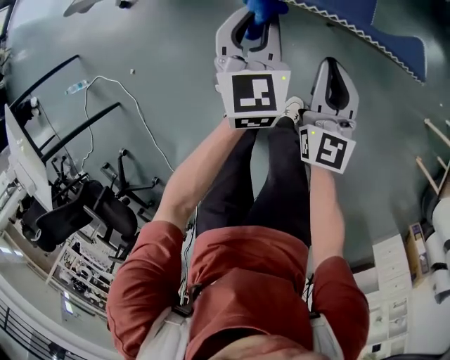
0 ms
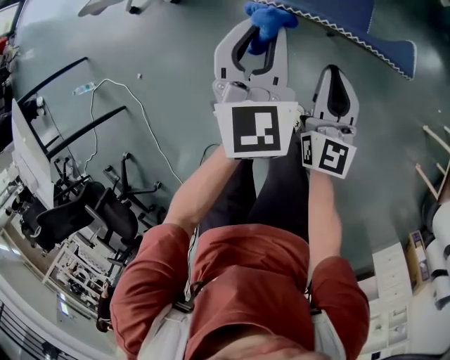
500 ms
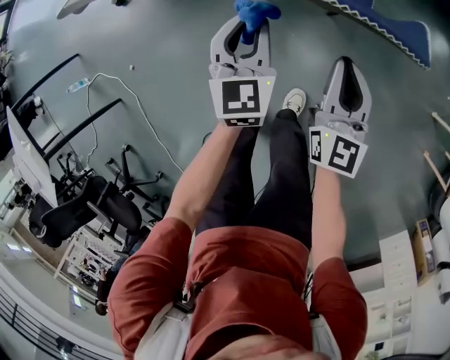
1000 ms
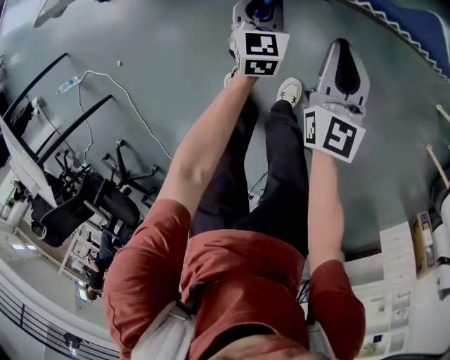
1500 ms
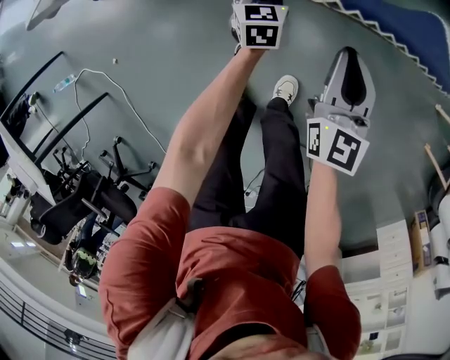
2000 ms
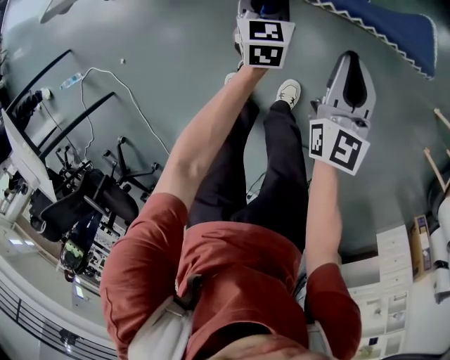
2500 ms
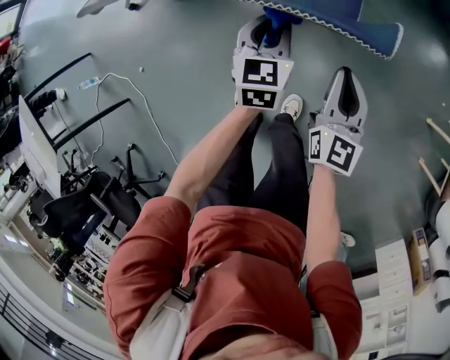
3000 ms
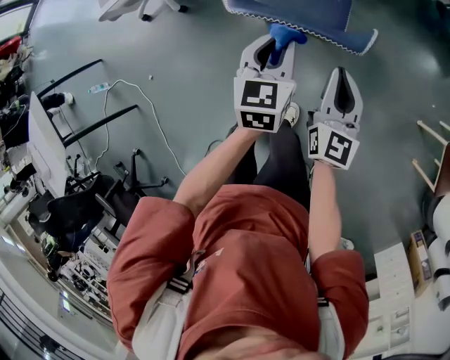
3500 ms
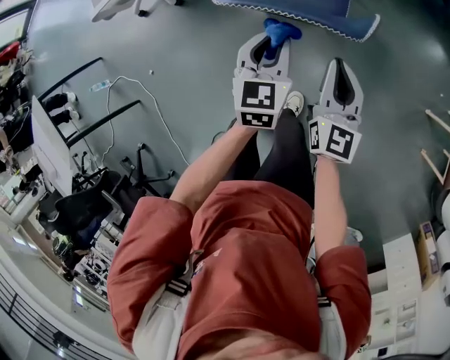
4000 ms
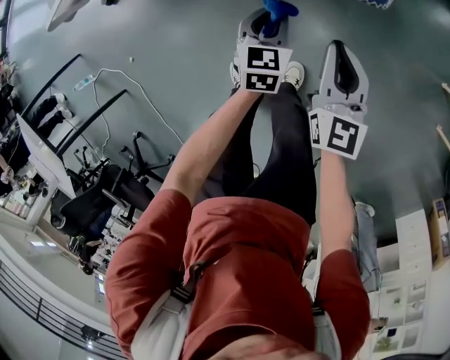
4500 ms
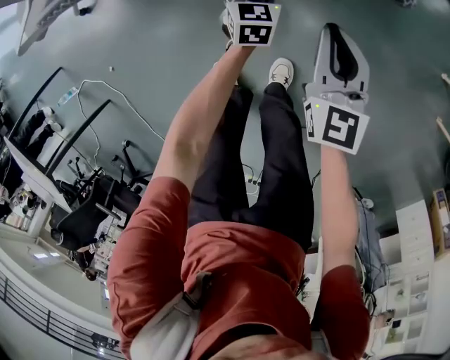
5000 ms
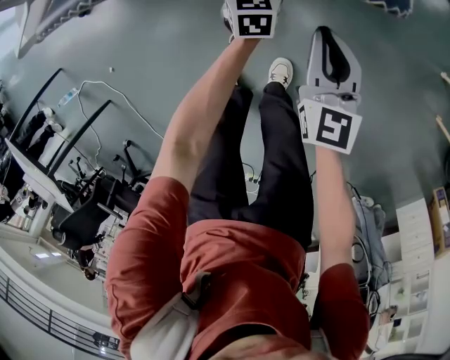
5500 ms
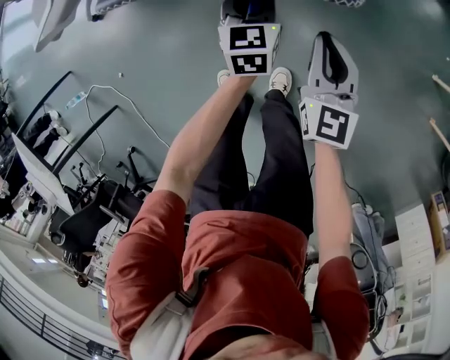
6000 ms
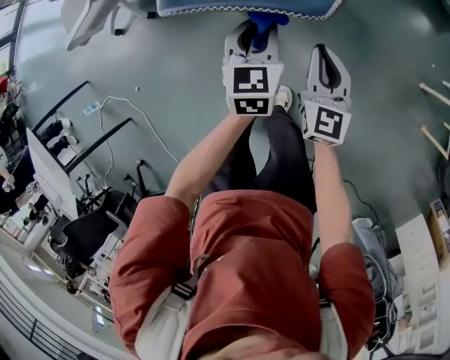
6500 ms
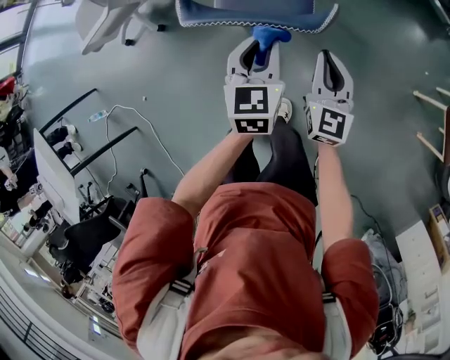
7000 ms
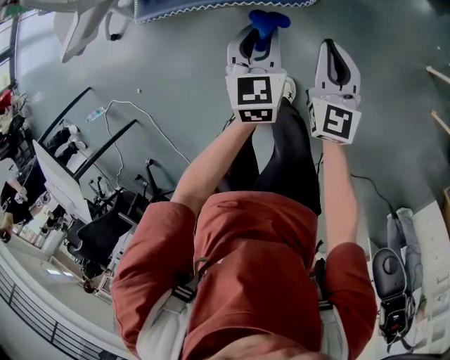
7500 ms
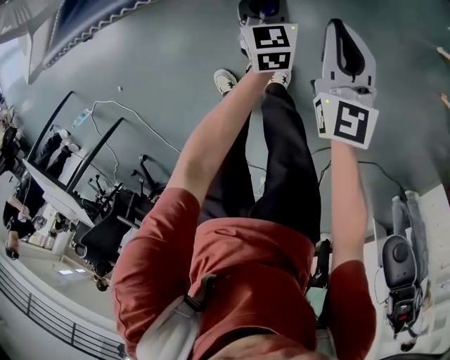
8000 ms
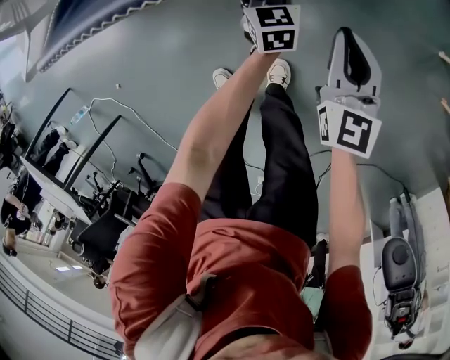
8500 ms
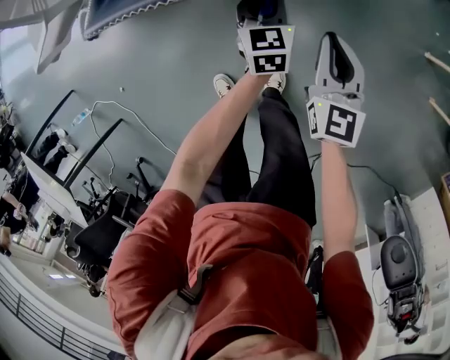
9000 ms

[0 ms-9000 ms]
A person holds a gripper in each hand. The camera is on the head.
0 ms to 2000 ms: The right gripper is displaced to the right and downward by about 15 cm. The left gripper heads downward, covering approximately 30 cm.
2000 ms to 4500 ms: The left gripper heads backward and to the right, covering some 15 cm, and travels upward and back again, roughly 40 cm each way. Meanwhile the right gripper goes upward and returns, some 20 cm each way.
4500 ms to 7000 ms: The right gripper is displaced upward by roughly 15 cm, while the left gripper heads upward, covering about 25 cm.
7000 ms to 9000 ms: The left gripper is displaced downward by about 25 cm. The right gripper goes some 15 cm downward.

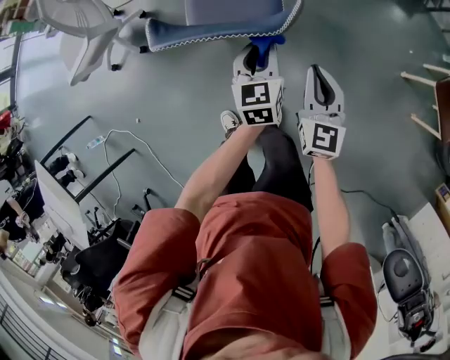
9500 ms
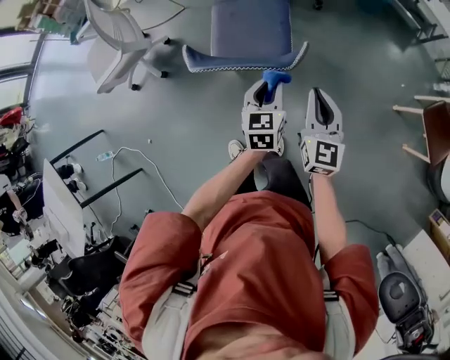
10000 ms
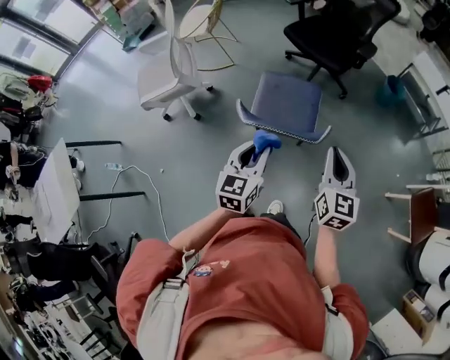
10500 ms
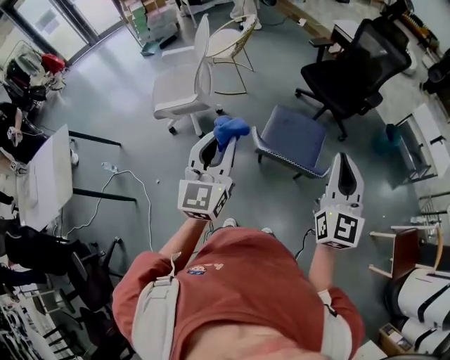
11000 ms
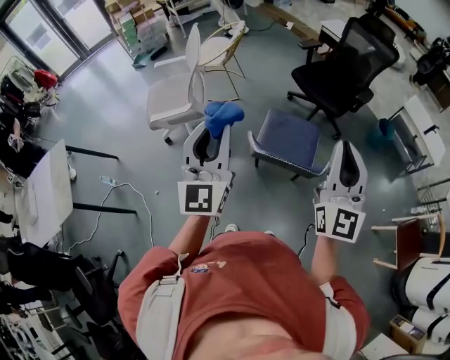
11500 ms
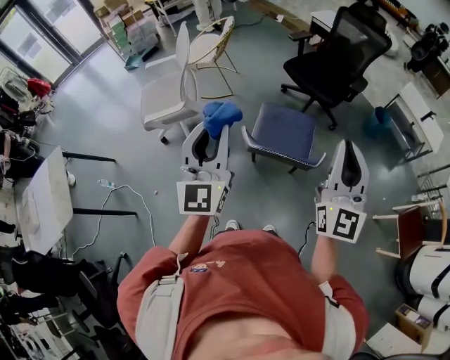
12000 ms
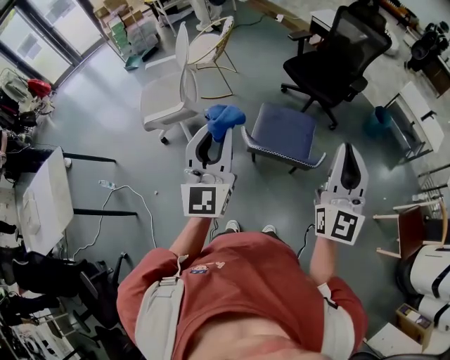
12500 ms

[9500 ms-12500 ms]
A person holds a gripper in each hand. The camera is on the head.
9500 ms to 11000 ms: The left gripper is displaced upward and to the left by some 50 cm, and turns by approximately 30 degrees, while the right gripper shifts some 40 cm upward, and changes its angle by about 30 degrees.
11000 ms to 12500 ms: The left gripper travels upward by some 5 cm; the right gripper changes place by some 5 cm.

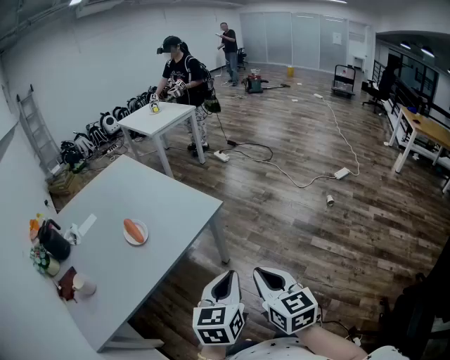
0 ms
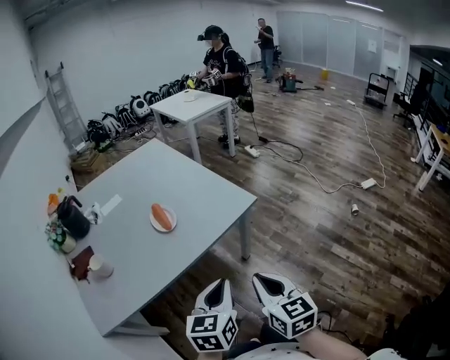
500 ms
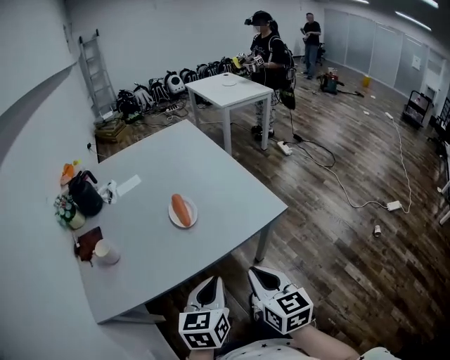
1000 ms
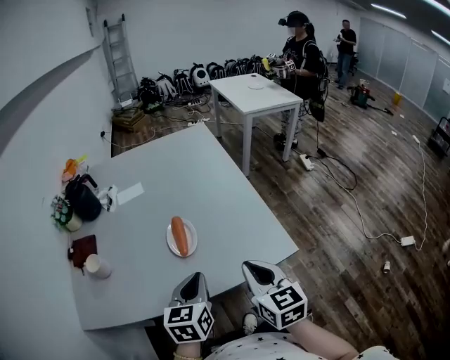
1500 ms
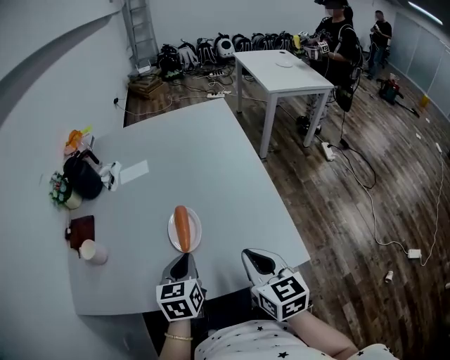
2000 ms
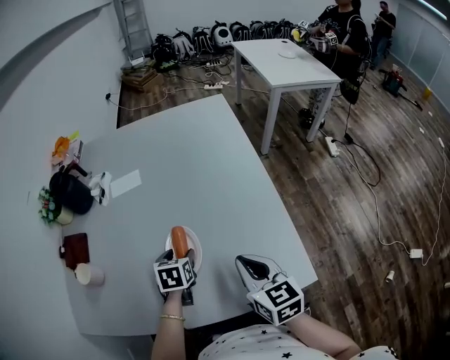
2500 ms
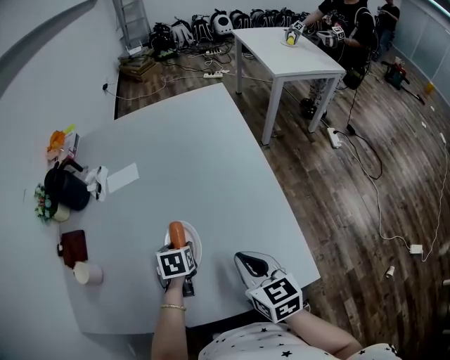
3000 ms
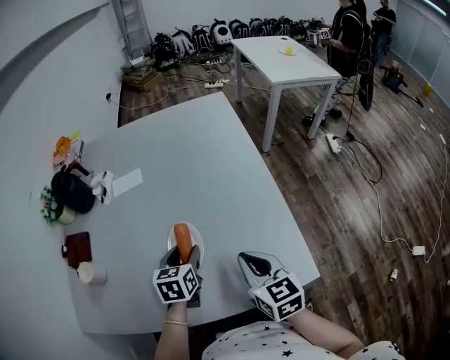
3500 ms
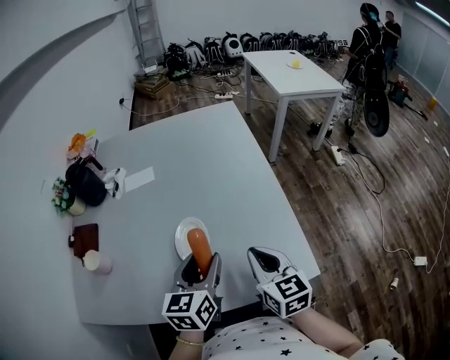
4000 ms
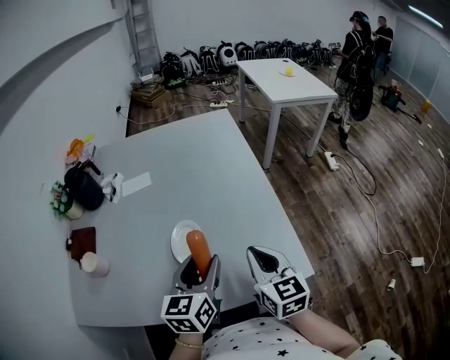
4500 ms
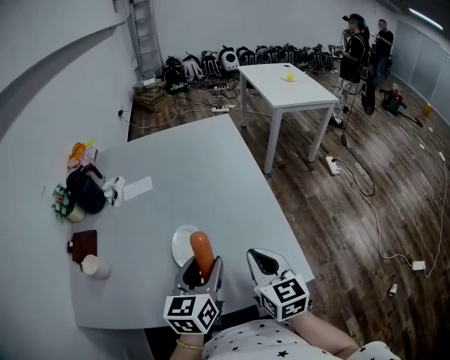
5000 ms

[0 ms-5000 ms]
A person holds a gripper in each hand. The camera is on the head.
0 ms to 2500 ms: Both grippers are carried roughly 50 cm. The left gripper tilts its fingers some 30 degrees downward, and opens its fingers. Meanwhile the right gripper rotates approximately 40 degrees.
2500 ms to 5000 ms: The left gripper goes some 20 cm upward, backward and to the right, and tilts its fingers roughly 40 degrees upward. The right gripper ends up approximately 5 cm from where it was.

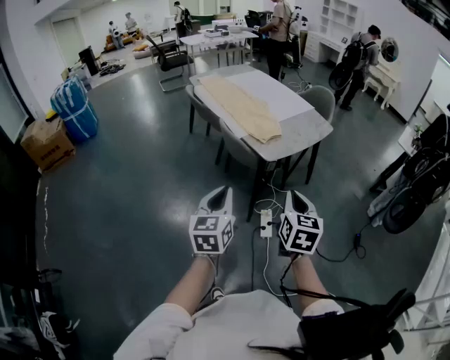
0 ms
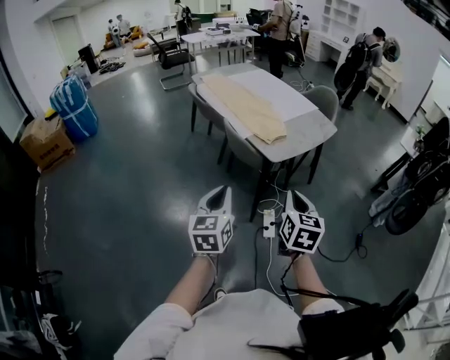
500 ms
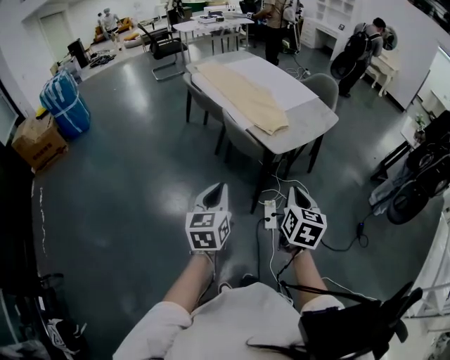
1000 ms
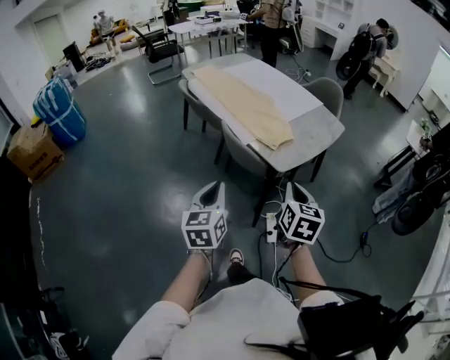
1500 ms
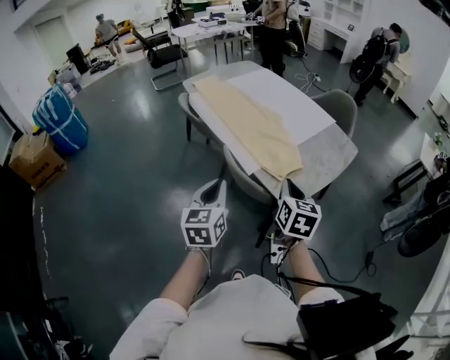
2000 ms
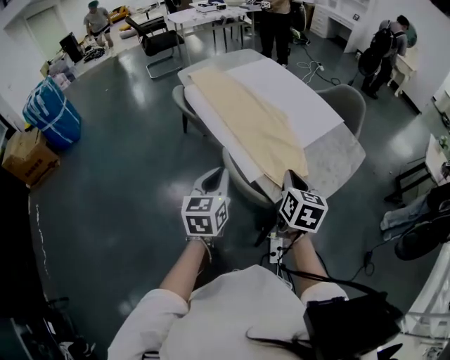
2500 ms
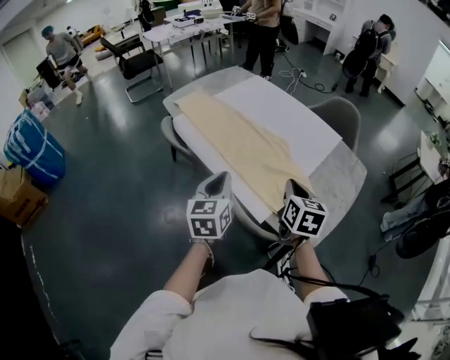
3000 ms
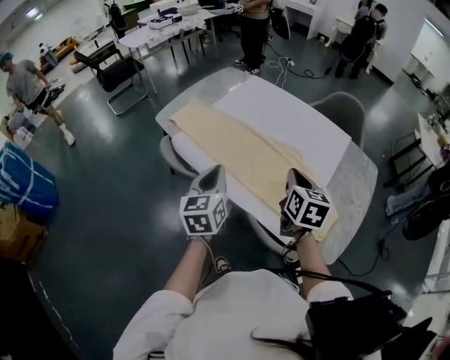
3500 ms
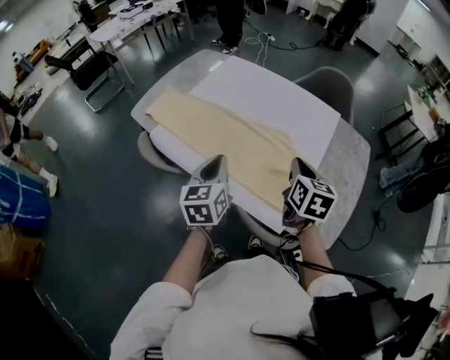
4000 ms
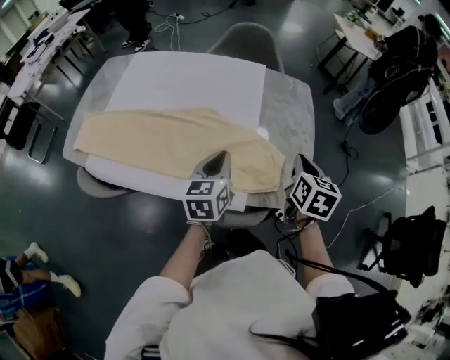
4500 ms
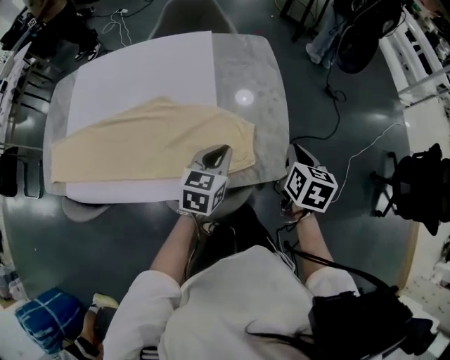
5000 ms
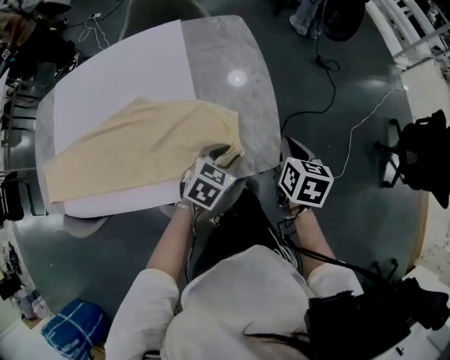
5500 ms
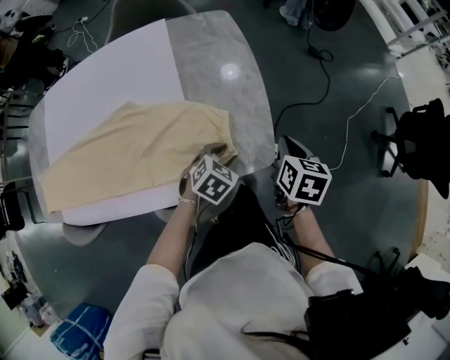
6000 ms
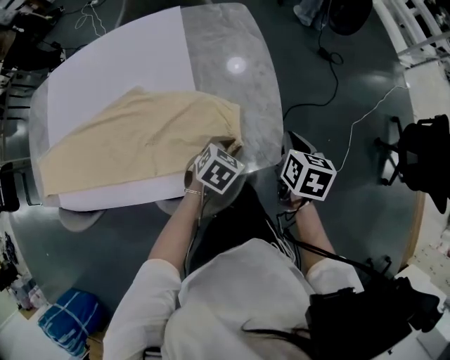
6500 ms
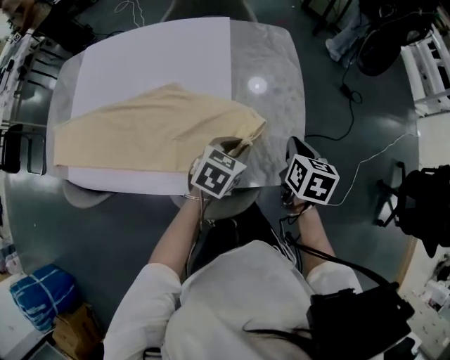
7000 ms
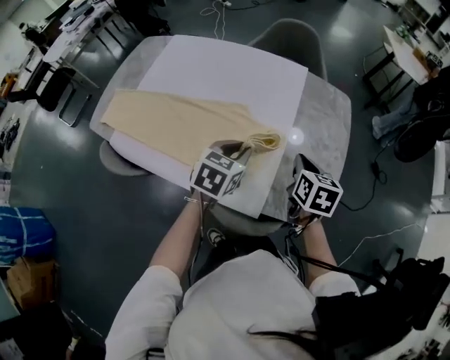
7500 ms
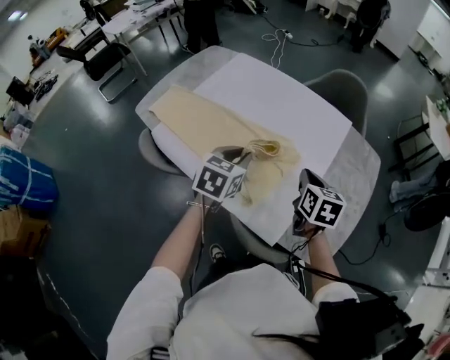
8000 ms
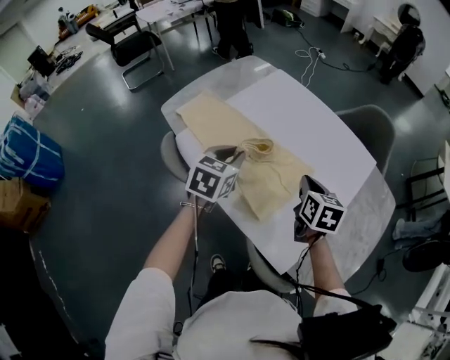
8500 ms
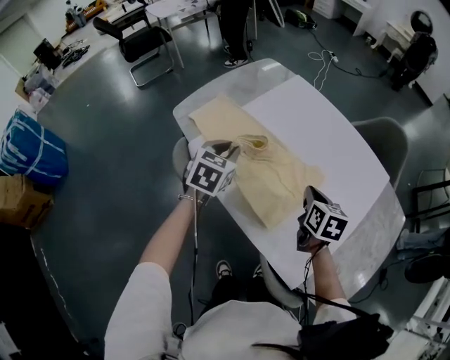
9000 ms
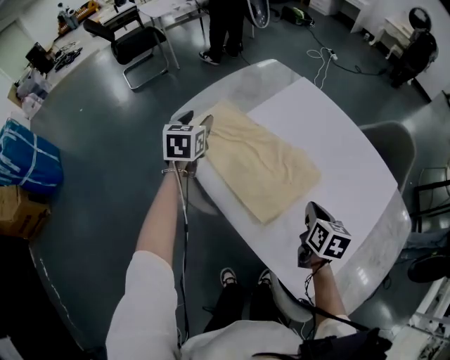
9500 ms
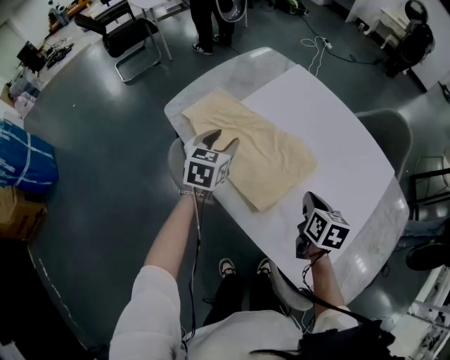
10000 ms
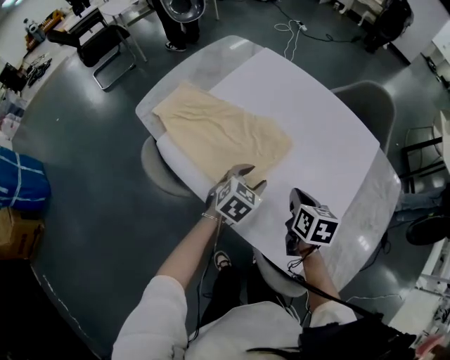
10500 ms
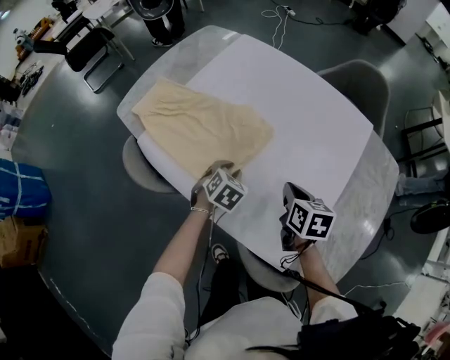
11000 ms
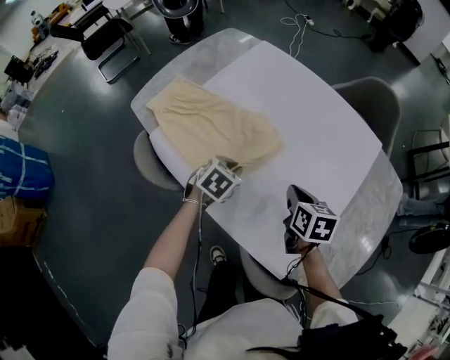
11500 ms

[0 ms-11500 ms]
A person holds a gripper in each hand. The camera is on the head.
0 ms to 2000 ms: Both grippers move forward, some 35 cm.
2000 ms to 4000 ms: The right gripper shifts roughly 40 cm forward and to the left, and swivels about 20 degrees. Meanwhile the left gripper is displaced forward by approximately 50 cm, and changes its angle by some 20 degrees.
4000 ms to 6000 ms: The right gripper shifts by approximately 40 cm, and rotates roughly 50 degrees; the left gripper shifts by approximately 50 cm, tips its fingers downward by approximately 40 degrees, and opens its fingers.
6000 ms to 7500 ms: The left gripper moves approximately 30 cm, turns by approximately 50 degrees, and closes; the right gripper shifts by some 25 cm, and turns by approximately 30 degrees.
7500 ms to 9500 ms: The left gripper ends up roughly 60 cm from where it was, swivels approximately 50 degrees, and opens its fingers. Meanwhile the right gripper shifts by approximately 40 cm, and turns by about 20 degrees.
9500 ms to 11500 ms: The right gripper moves to the right, some 10 cm. Meanwhile the left gripper shifts roughly 35 cm to the right and downward, changes its angle by about 50 degrees, and closes its fingers.
